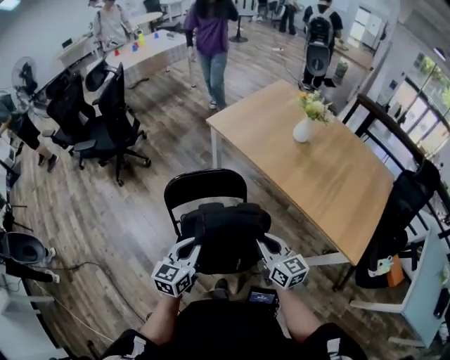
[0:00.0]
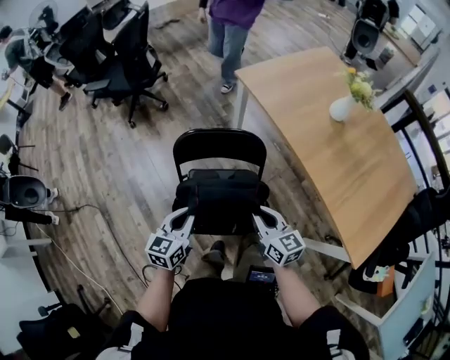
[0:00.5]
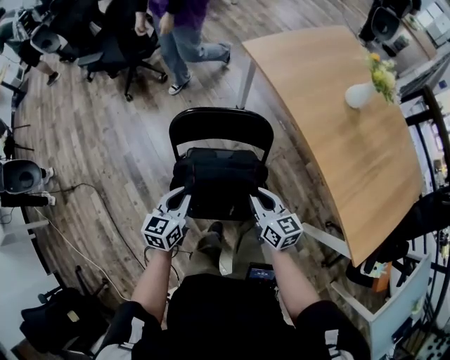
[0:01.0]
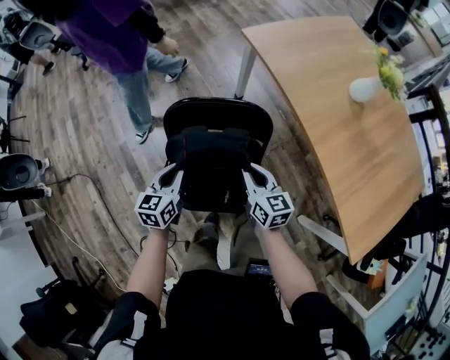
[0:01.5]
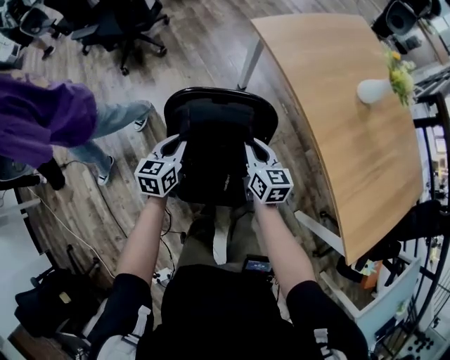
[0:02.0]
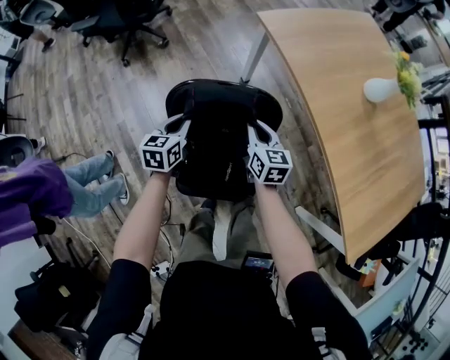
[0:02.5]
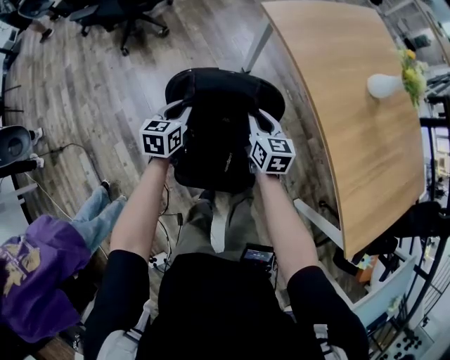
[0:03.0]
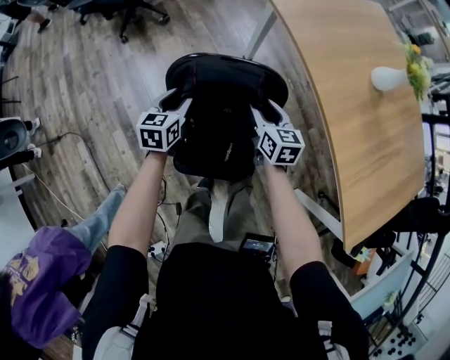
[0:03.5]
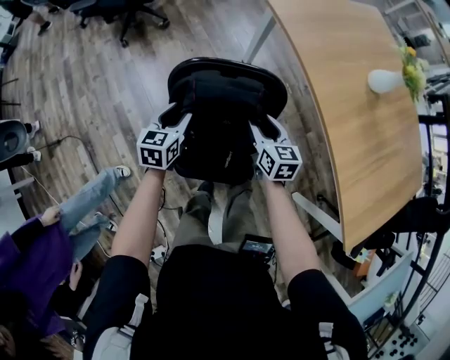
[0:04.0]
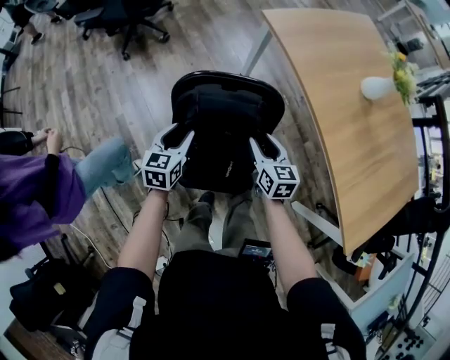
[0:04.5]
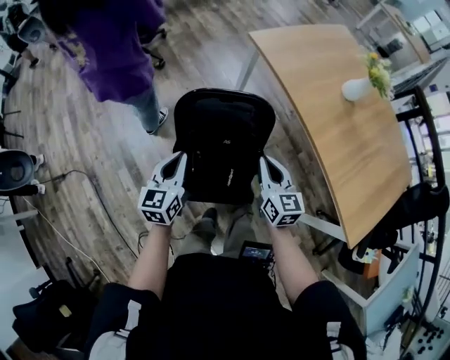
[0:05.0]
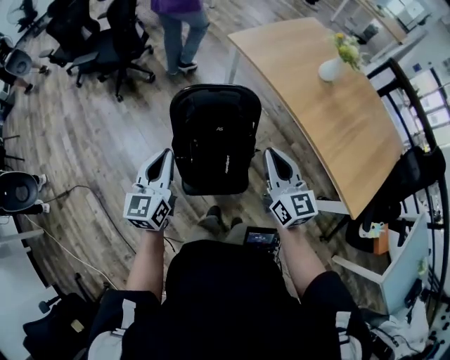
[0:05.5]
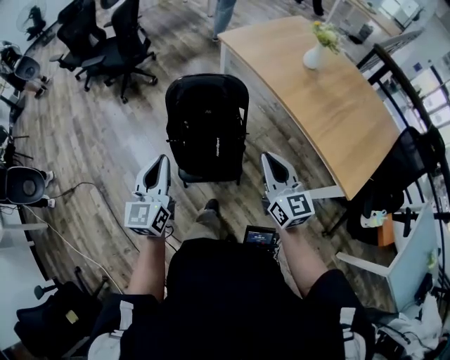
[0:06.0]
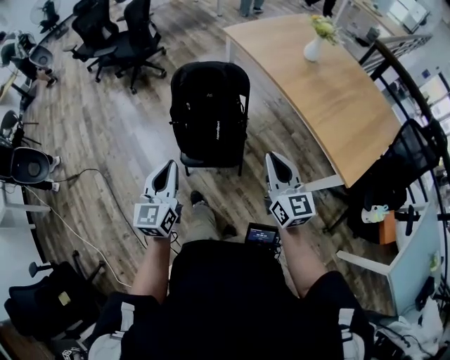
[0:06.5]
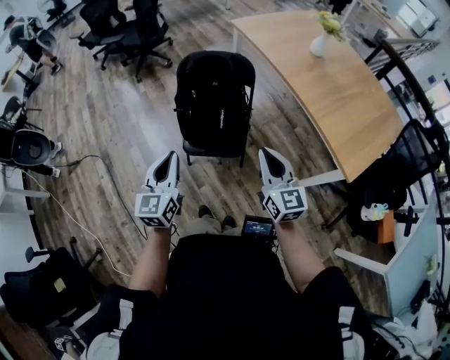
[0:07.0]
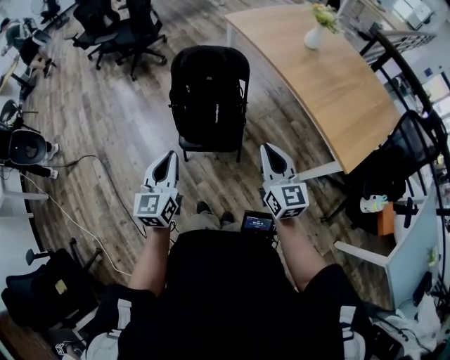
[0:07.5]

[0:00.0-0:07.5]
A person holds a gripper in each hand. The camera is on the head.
0:00.0 to 0:02.0: The two grippers go roughly 30 cm forward and downward. The left gripper changes its angle by some 20 degrees.
0:02.0 to 0:04.0: The right gripper opens. The left gripper opens up.
0:04.0 to 0:05.5: Both grippers move upward and backward, approximately 30 cm. The left gripper changes its angle by approximately 30 degrees, and closes. Meanwhile the right gripper turns by roughly 30 degrees, and closes.
0:05.5 to 0:07.5: Both grippers travel together backward, about 30 cm.

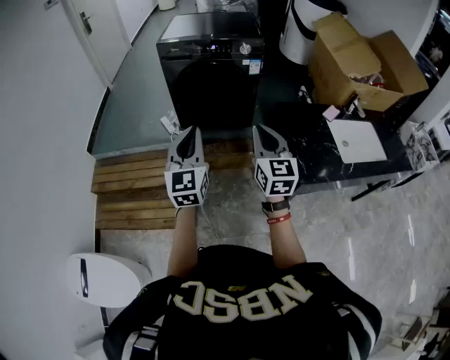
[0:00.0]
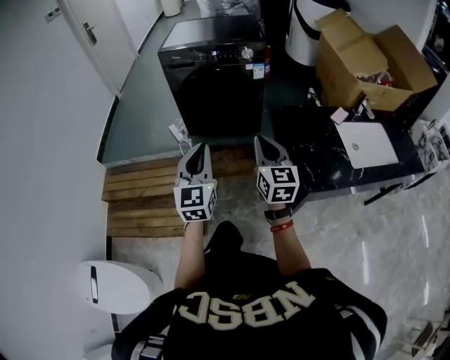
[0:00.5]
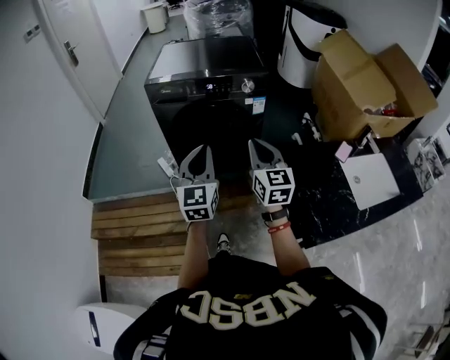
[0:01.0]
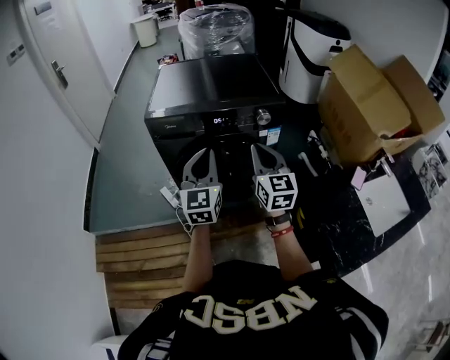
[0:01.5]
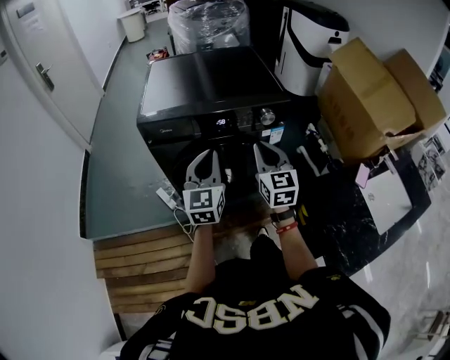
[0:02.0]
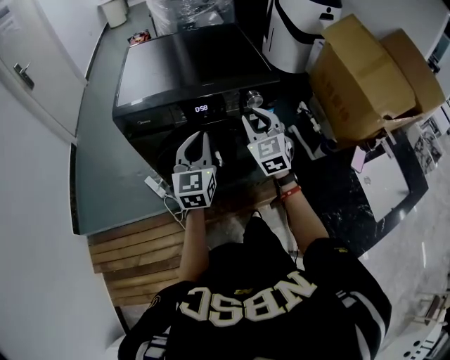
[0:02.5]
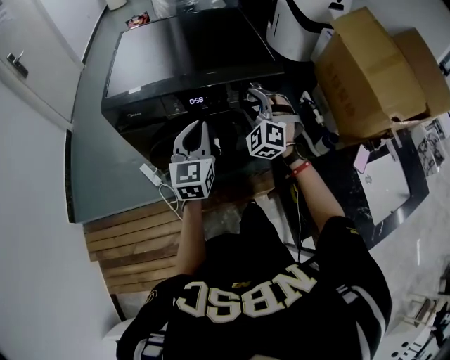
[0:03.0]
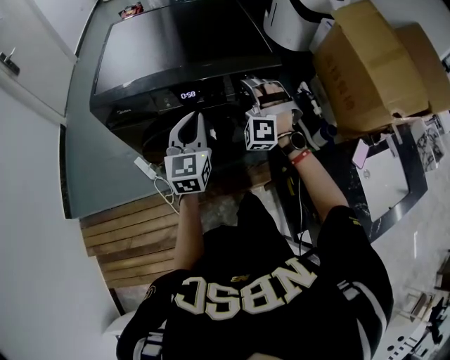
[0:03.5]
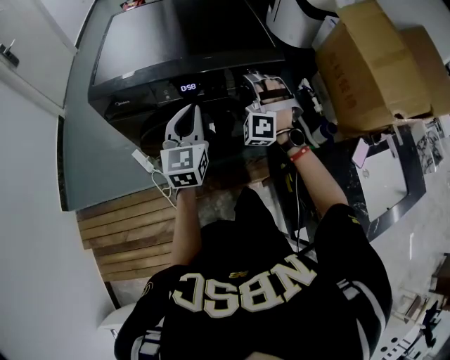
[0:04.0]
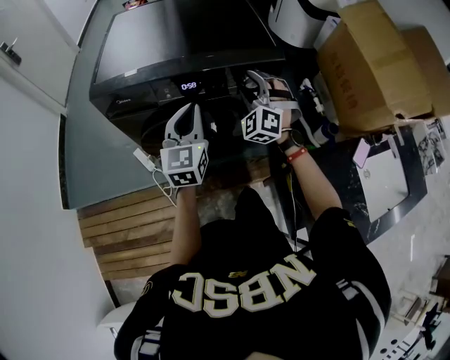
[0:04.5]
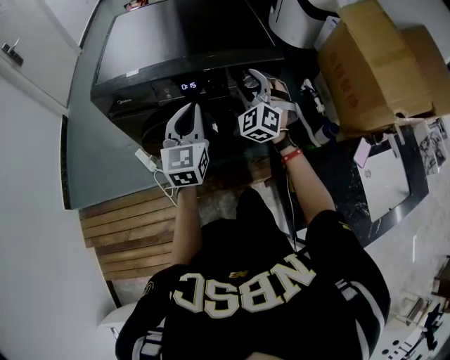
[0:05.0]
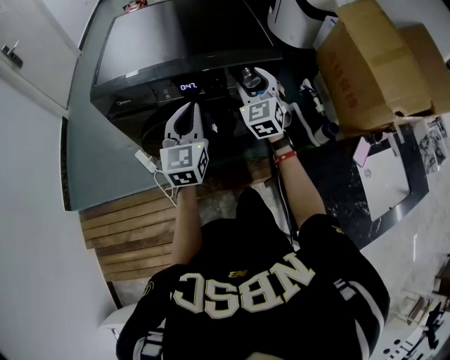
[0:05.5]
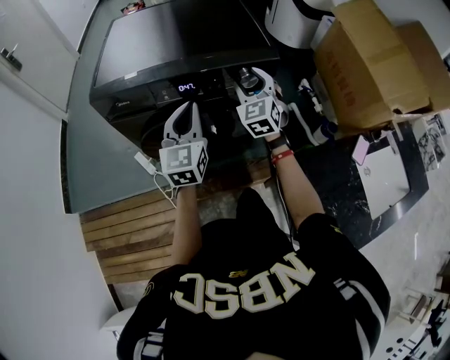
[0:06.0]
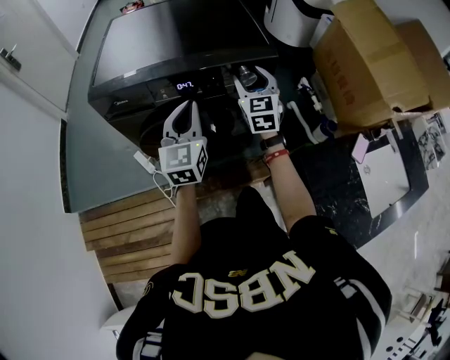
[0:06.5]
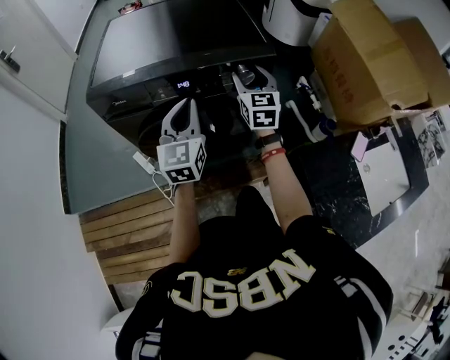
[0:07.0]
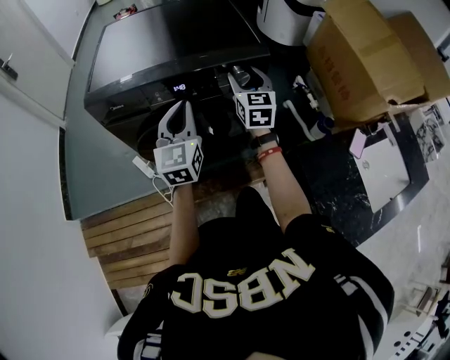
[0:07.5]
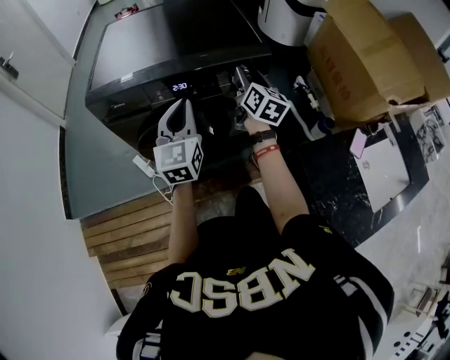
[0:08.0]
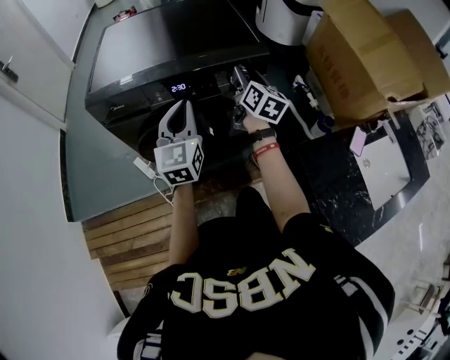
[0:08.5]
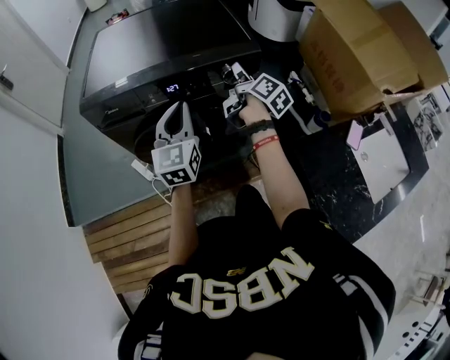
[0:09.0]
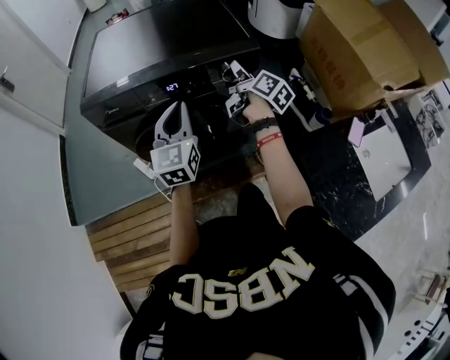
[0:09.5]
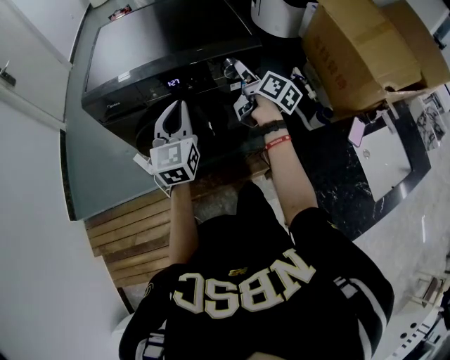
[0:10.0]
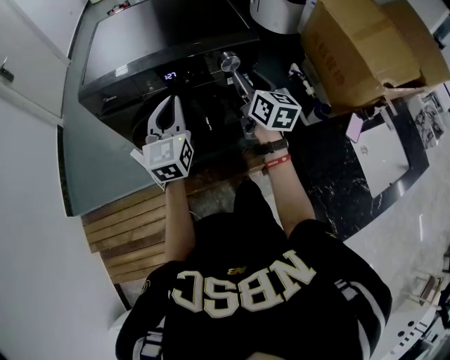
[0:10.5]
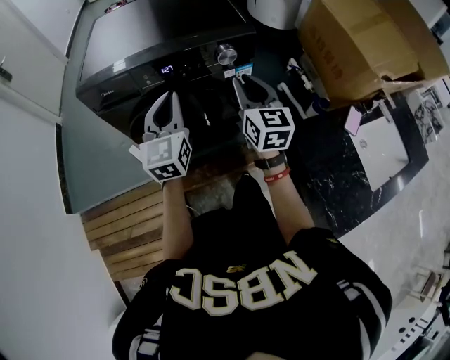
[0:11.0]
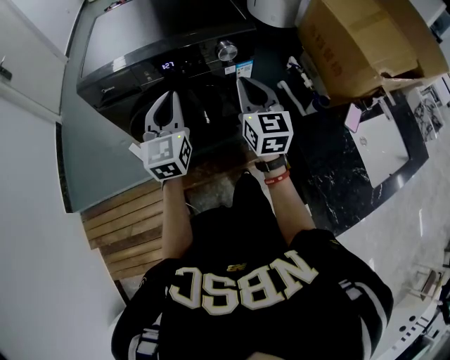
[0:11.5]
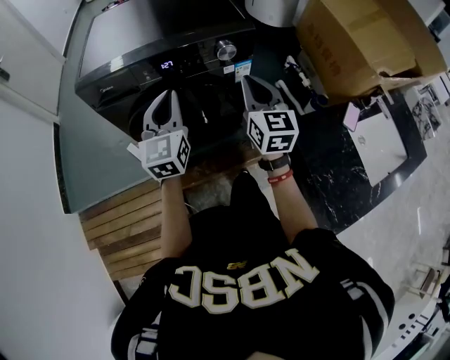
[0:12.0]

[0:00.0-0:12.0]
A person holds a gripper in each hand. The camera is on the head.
0:00.0 to 0:02.0: Both grippers are carried forward, roughly 50 cm.
0:02.0 to 0:04.0: The right gripper goes about 20 cm forward and downward, rotates around the line of its fingers by about 80 degrees, counterclockwise from behind, and opens its fingers; the left gripper moves forward and downward, approximately 10 cm.
0:04.0 to 0:06.0: The right gripper rolls clockwise, seen from behind, by roughly 60 degrees.
0:06.0 to 0:08.0: The right gripper twists some 60 degrees clockwise, seen from behind.
0:08.0 to 0:10.0: The right gripper turns by roughly 30 degrees.
0:10.0 to 0:12.0: The right gripper travels backward by roughly 15 cm, rolls counterclockwise, seen from behind, by about 50 degrees, and closes its fingers.

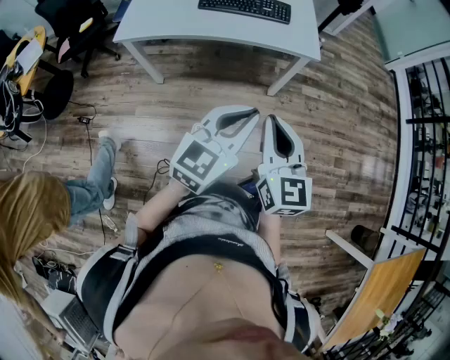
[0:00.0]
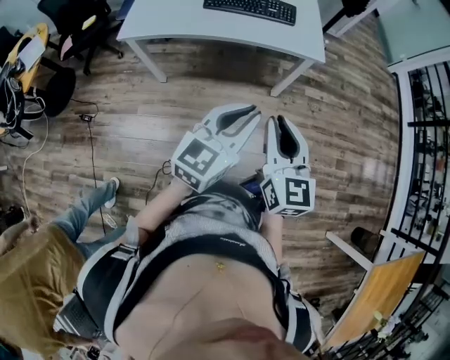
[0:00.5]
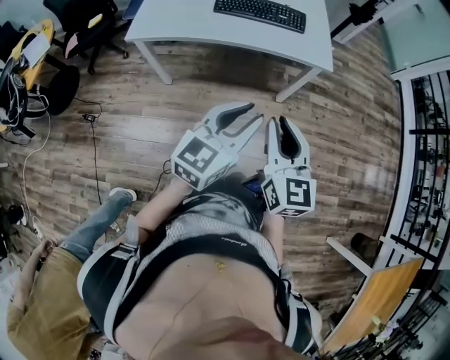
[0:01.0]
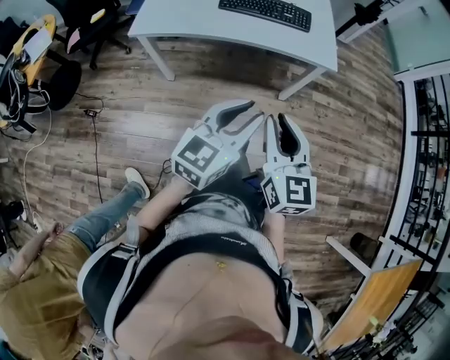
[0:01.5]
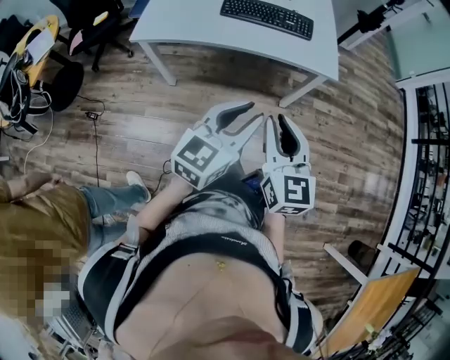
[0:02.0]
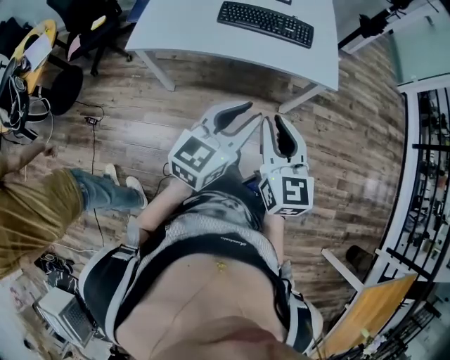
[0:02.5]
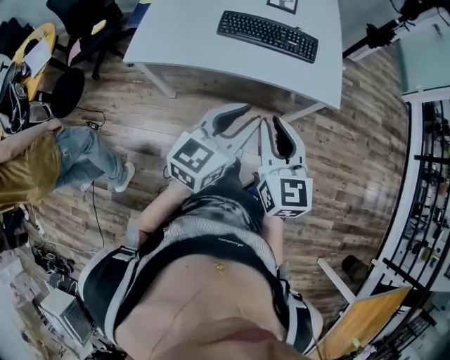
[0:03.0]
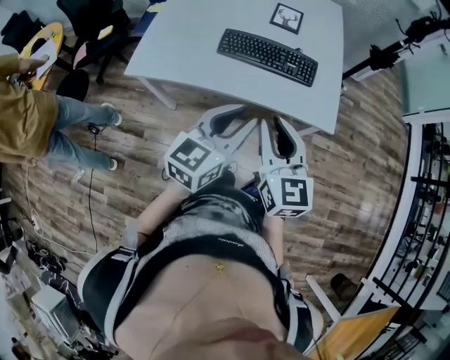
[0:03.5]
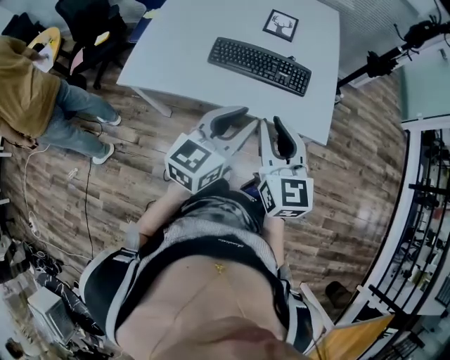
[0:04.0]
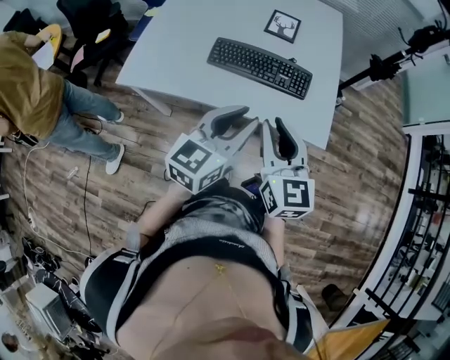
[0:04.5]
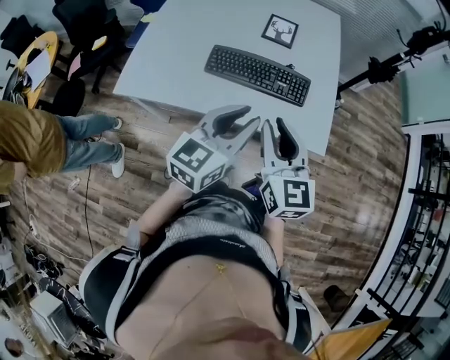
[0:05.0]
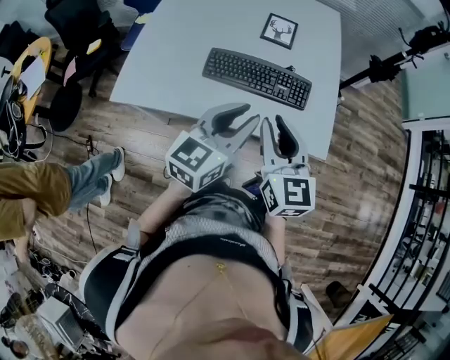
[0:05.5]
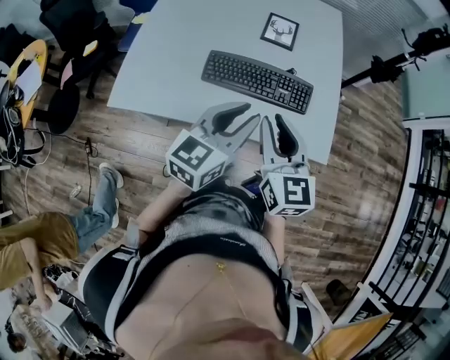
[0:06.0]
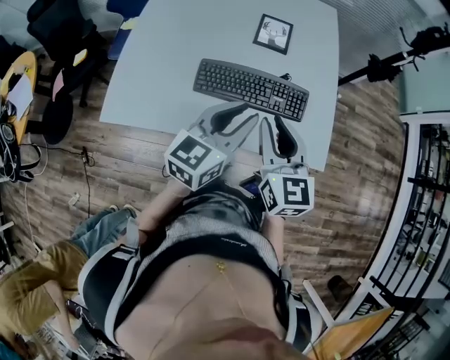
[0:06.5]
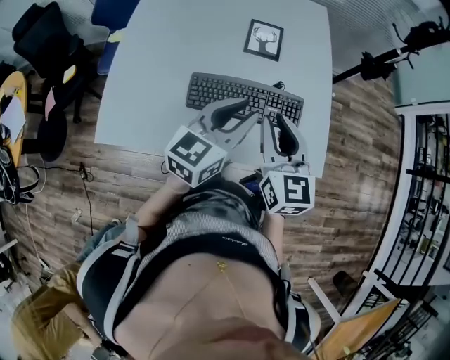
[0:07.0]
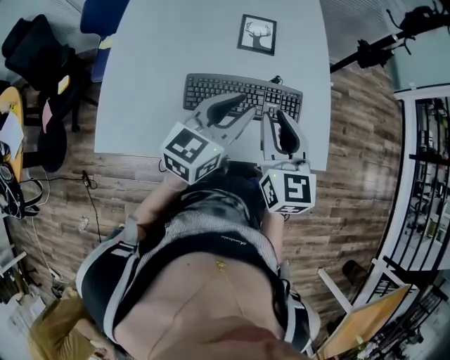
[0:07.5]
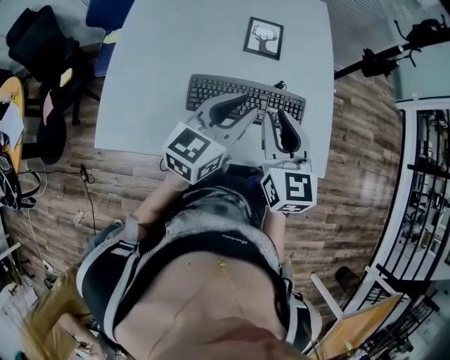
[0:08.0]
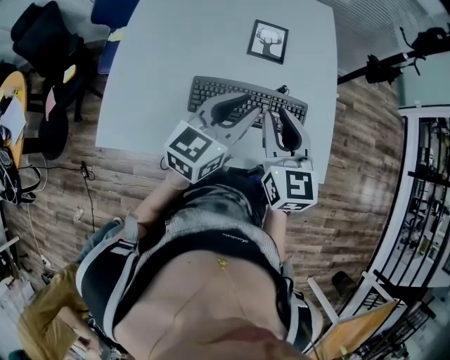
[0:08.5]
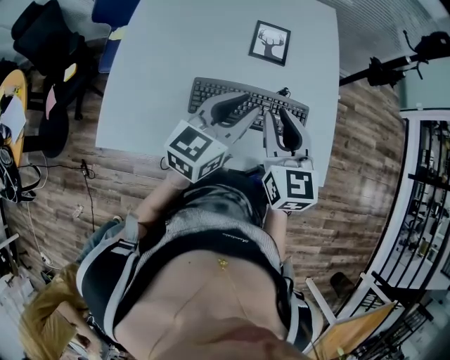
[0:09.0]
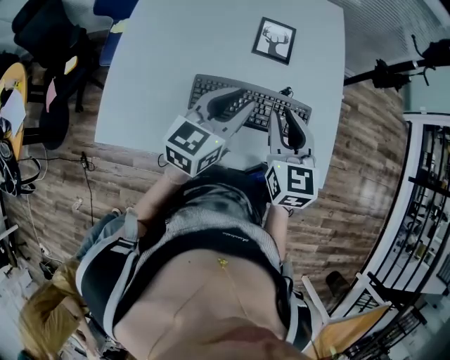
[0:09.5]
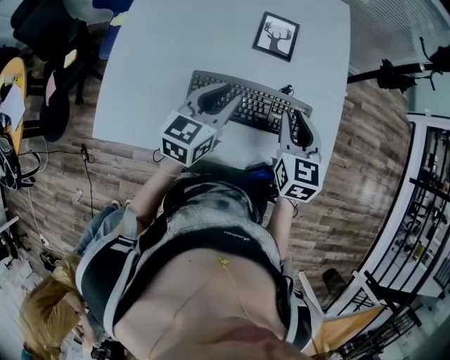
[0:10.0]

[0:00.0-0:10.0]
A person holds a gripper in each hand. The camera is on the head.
0:00.0 to 0:02.0: The two grippers go about 5 cm to the left.
0:02.0 to 0:04.0: Both grippers move forward, about 25 cm.
0:04.0 to 0:06.0: Both grippers move forward, approximately 10 cm.
0:06.0 to 0:08.0: Both grippers travel together forward, some 15 cm.
0:08.0 to 0:10.0: The two grippers go some 10 cm downward and forward.
